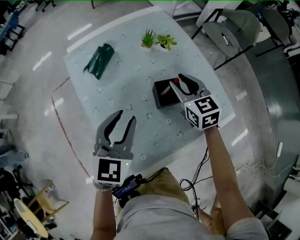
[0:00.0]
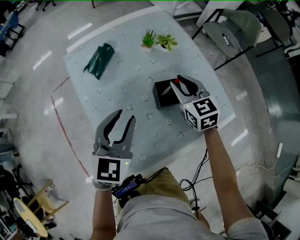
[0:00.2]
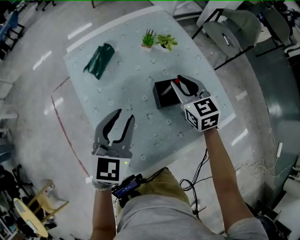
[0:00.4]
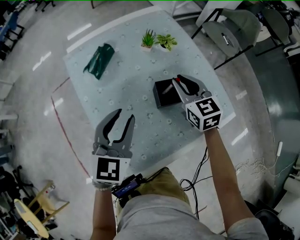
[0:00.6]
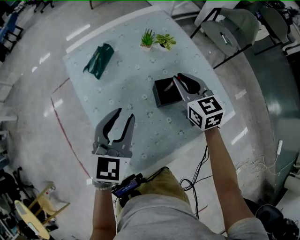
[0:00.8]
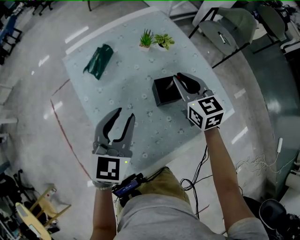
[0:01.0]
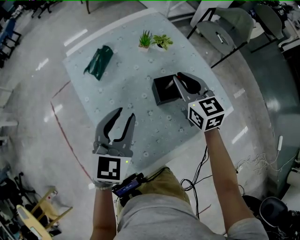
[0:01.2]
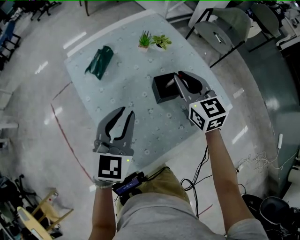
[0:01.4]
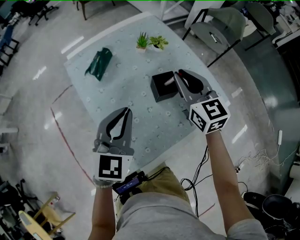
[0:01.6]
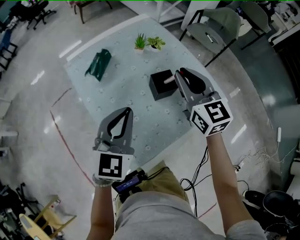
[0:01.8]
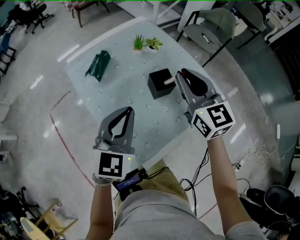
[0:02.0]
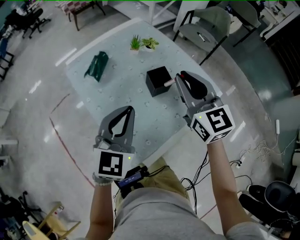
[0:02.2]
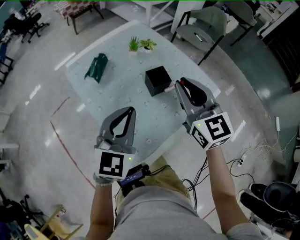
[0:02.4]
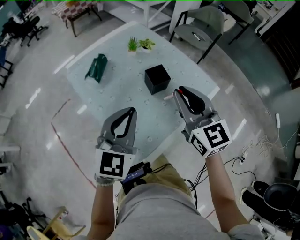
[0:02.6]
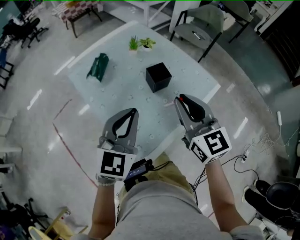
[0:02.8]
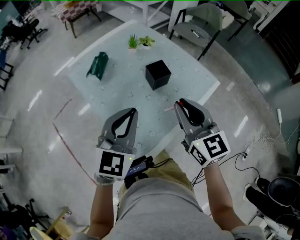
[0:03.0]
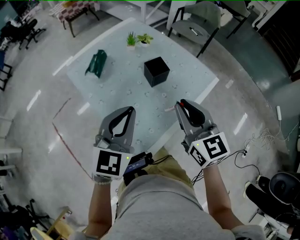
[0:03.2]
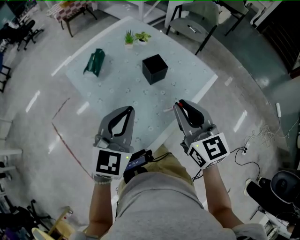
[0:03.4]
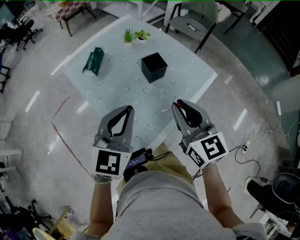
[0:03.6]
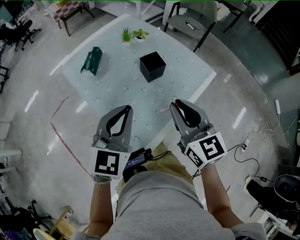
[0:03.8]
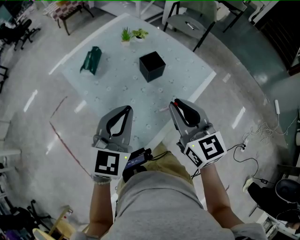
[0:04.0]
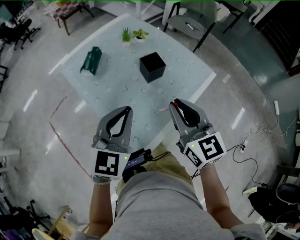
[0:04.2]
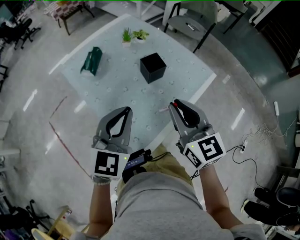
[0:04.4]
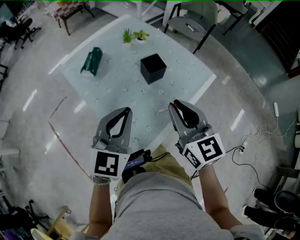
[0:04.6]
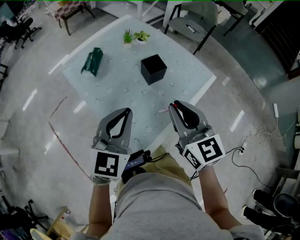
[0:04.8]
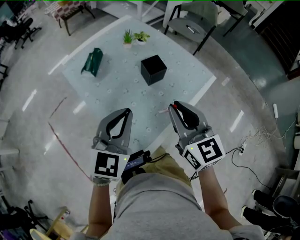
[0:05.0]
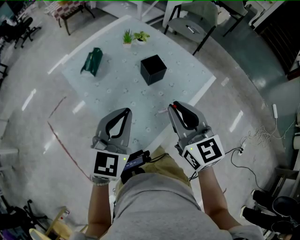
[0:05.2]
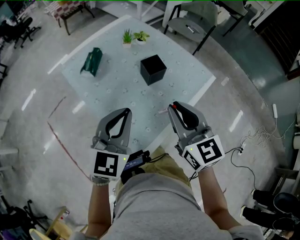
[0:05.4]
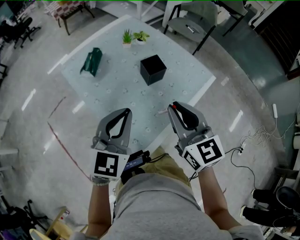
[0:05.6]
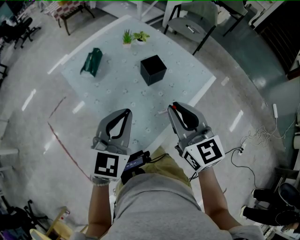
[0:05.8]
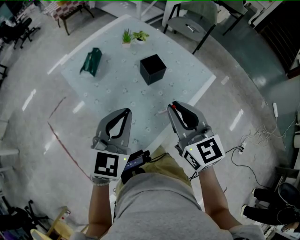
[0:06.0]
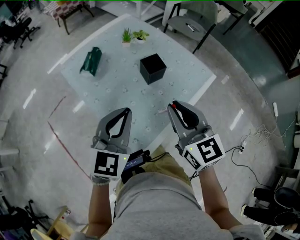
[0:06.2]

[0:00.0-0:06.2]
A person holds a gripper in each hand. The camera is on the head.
0:00.0 to 0:01.6: The right gripper travels upward by roughly 10 cm, and closes up, while the left gripper closes.
0:01.6 to 0:03.2: The left gripper heads backward, covering about 10 cm. Meanwhile the right gripper heads backward, covering about 20 cm.
0:03.2 to 0:04.6: The grippers stay close to where they were, moving slightly.
0:04.6 to 0:06.2: Neither gripper changes place.

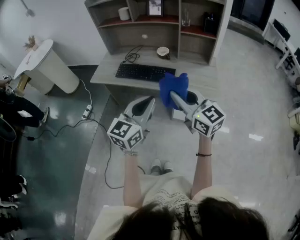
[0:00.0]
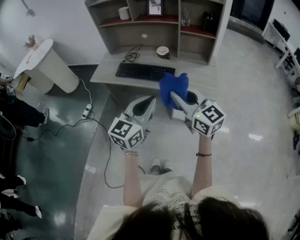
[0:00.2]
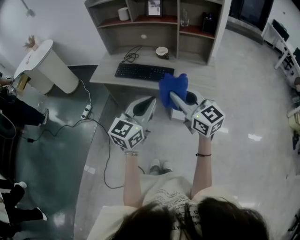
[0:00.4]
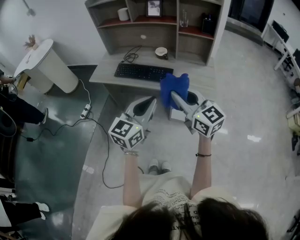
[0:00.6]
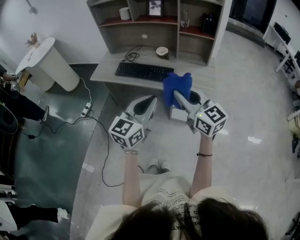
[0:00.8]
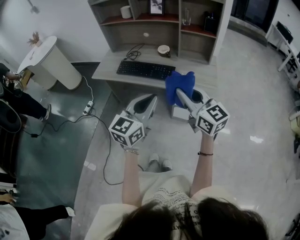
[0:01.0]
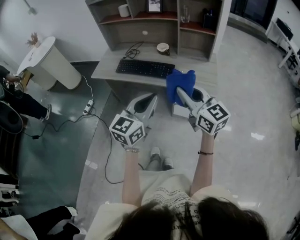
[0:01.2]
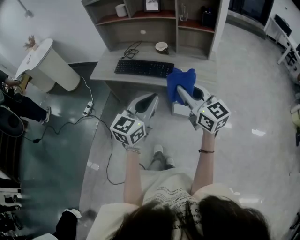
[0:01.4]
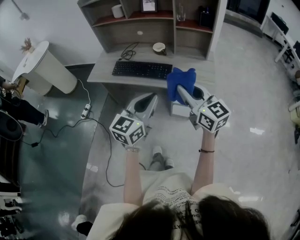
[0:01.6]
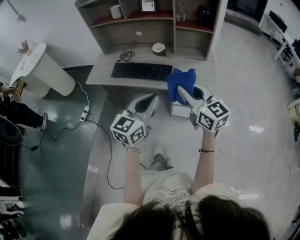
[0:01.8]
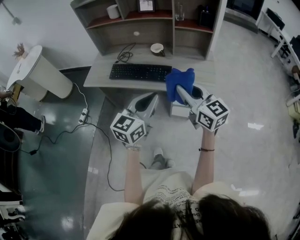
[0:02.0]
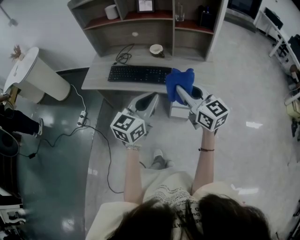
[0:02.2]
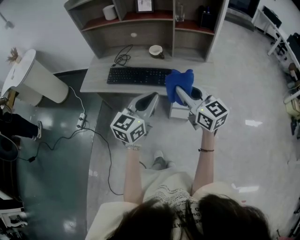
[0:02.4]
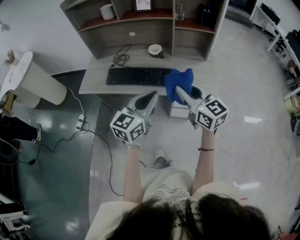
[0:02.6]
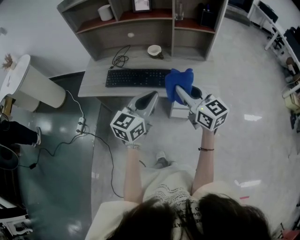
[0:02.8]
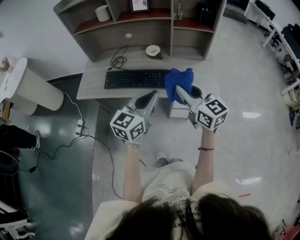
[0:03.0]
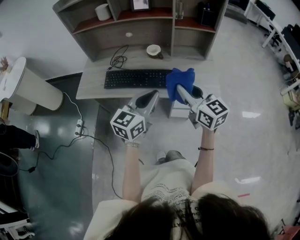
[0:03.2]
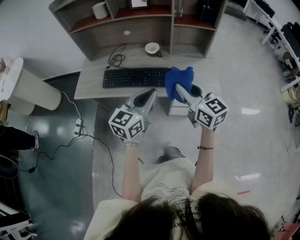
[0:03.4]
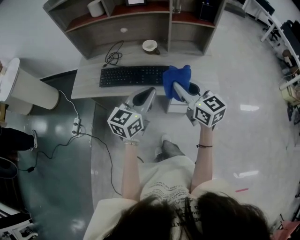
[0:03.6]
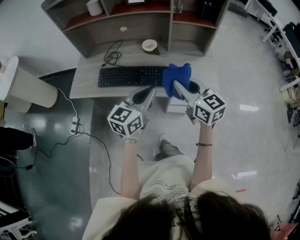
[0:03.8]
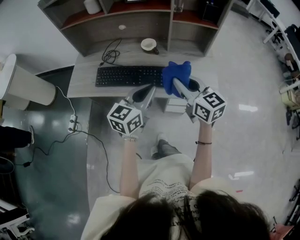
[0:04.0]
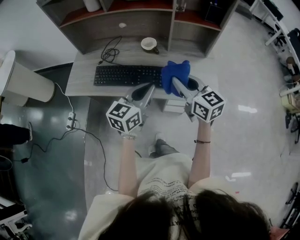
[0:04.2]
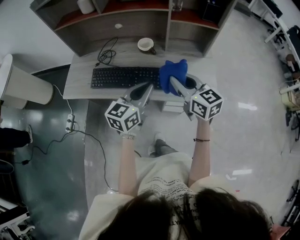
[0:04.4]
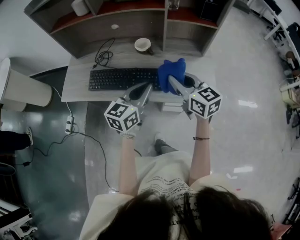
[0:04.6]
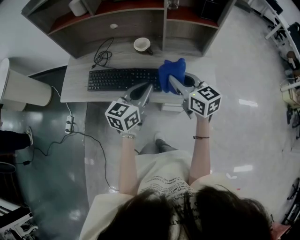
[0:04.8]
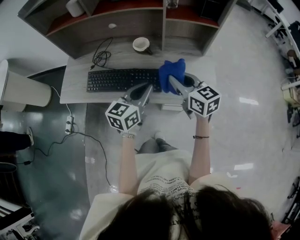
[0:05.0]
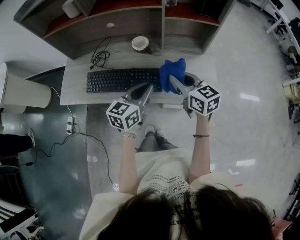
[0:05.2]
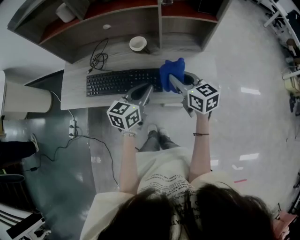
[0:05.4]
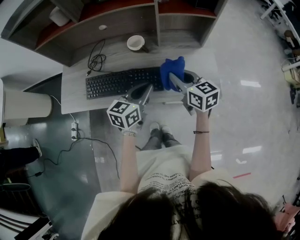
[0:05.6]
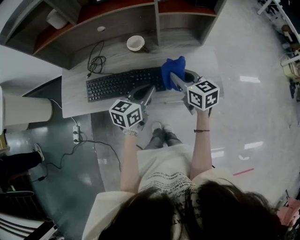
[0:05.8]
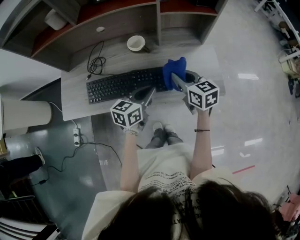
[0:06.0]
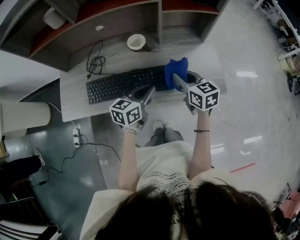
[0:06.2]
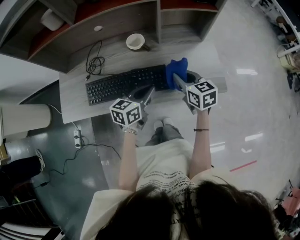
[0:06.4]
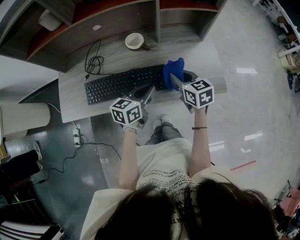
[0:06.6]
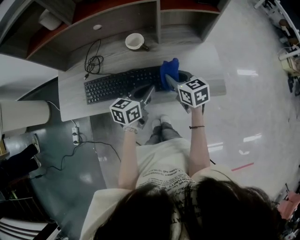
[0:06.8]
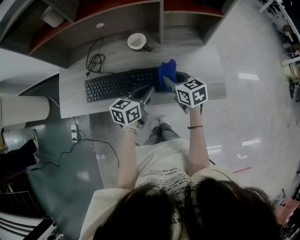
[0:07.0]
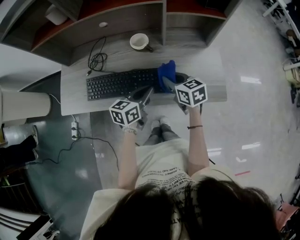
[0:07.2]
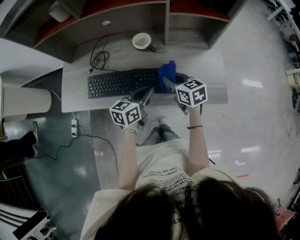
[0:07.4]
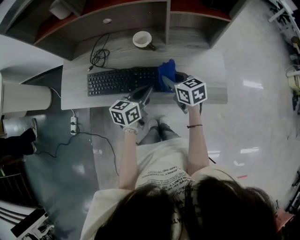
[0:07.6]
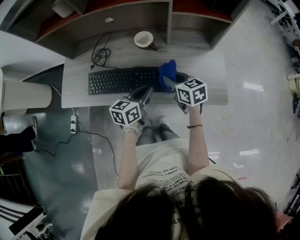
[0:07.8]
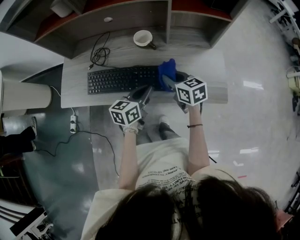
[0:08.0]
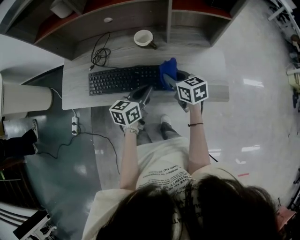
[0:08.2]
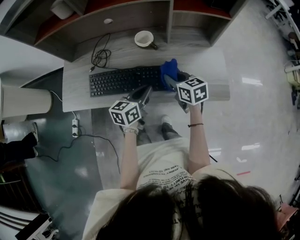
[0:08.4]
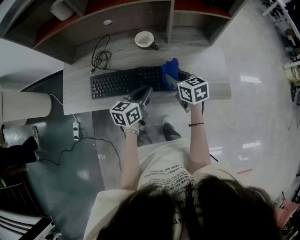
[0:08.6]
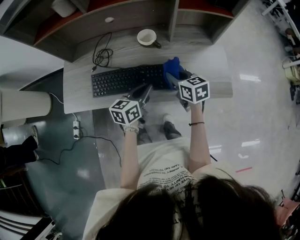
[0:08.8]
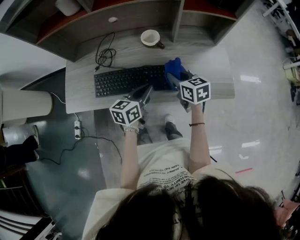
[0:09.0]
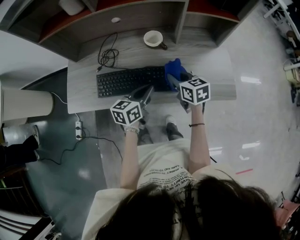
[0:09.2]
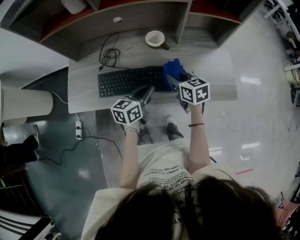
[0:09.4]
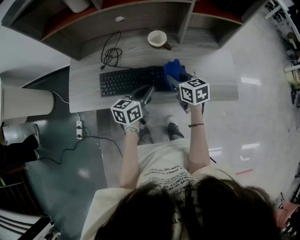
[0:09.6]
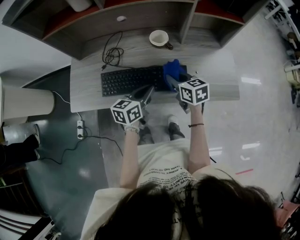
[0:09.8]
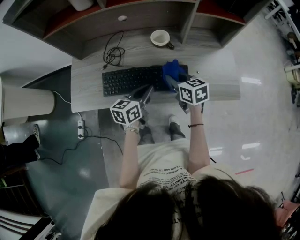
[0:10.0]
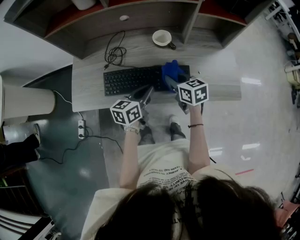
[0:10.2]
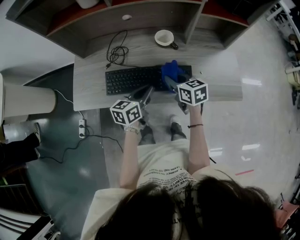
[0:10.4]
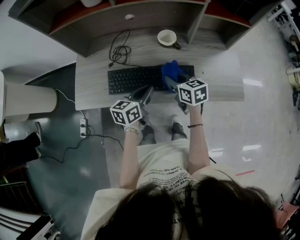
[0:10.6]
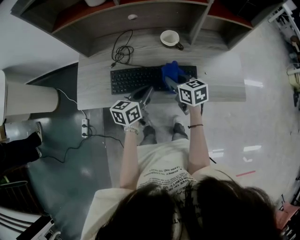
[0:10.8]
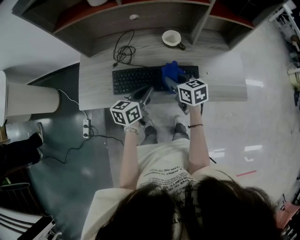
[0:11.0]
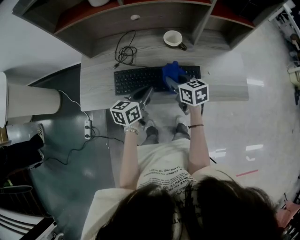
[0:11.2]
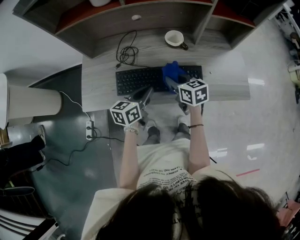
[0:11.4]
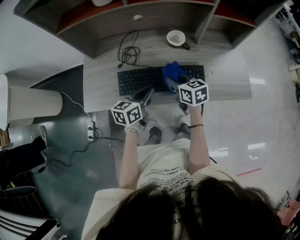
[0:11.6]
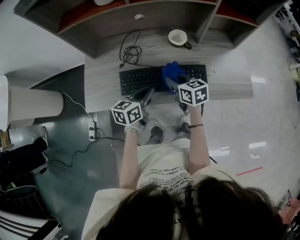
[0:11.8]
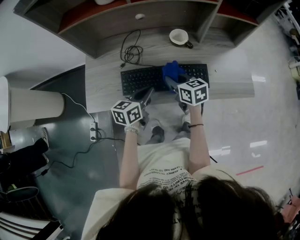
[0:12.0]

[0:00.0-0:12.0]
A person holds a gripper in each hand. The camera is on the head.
0:00.0 to 0:01.6: There are only small adjustments of the grippers.
0:01.6 to 0:03.0: The left gripper is displaced forward by about 15 cm, while the right gripper heads forward and to the left, covering approximately 15 cm.
0:03.0 to 0:04.4: The right gripper heads forward, covering approximately 10 cm, while the left gripper travels forward and downward by some 10 cm.
0:04.4 to 0:06.0: Both grippers move downward and forward, about 15 cm. The left gripper rotates roughly 20 degrees.
0:06.0 to 0:07.6: The right gripper heads downward, covering about 5 cm.
0:07.6 to 0:09.0: The left gripper is displaced to the left by some 5 cm.
0:09.0 to 0:10.4: The grippers both shift to the left by approximately 5 cm.
0:10.4 to 0:12.0: The grippers both shift to the left by approximately 10 cm.

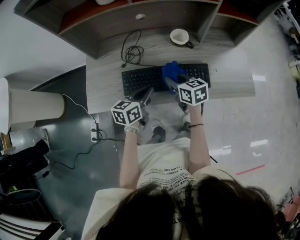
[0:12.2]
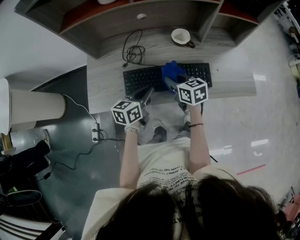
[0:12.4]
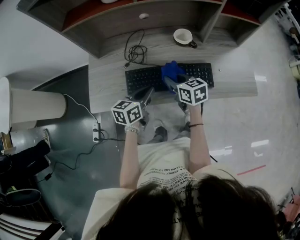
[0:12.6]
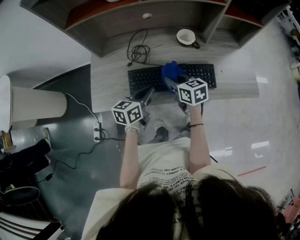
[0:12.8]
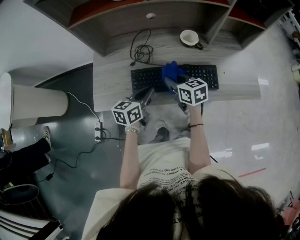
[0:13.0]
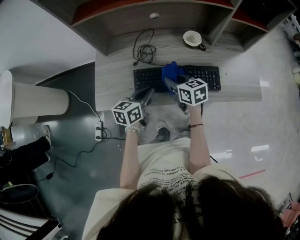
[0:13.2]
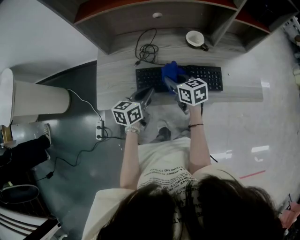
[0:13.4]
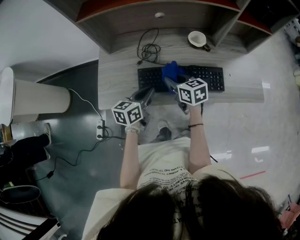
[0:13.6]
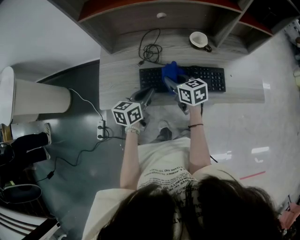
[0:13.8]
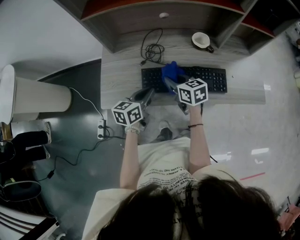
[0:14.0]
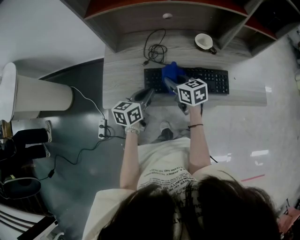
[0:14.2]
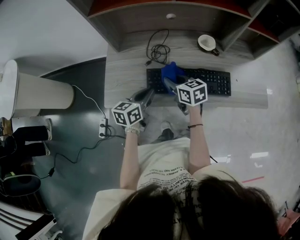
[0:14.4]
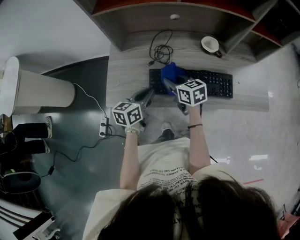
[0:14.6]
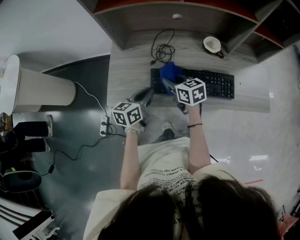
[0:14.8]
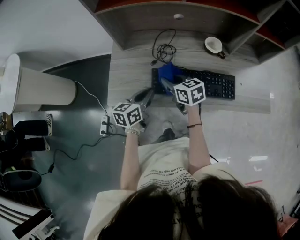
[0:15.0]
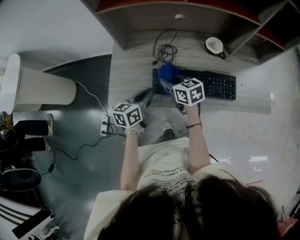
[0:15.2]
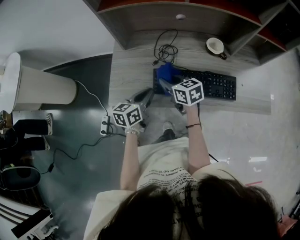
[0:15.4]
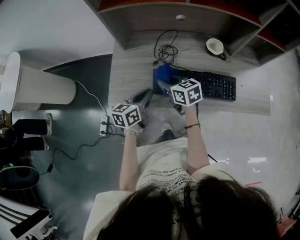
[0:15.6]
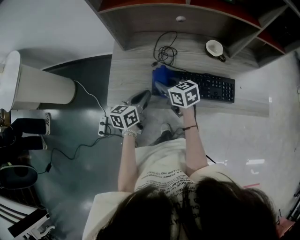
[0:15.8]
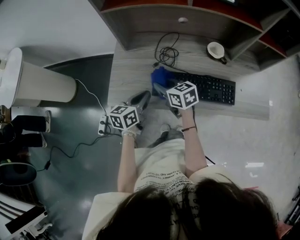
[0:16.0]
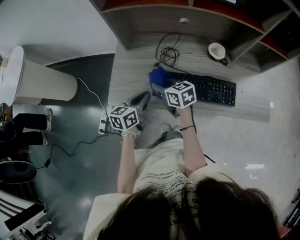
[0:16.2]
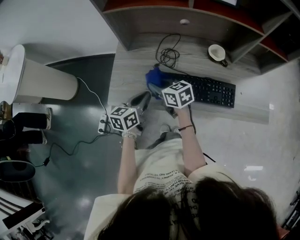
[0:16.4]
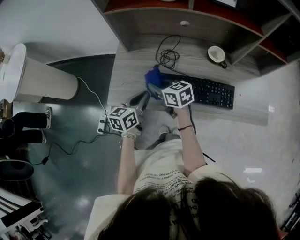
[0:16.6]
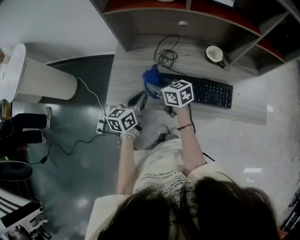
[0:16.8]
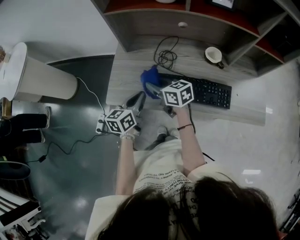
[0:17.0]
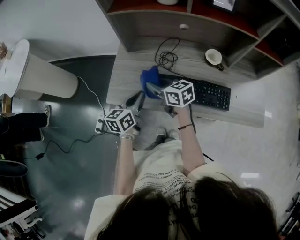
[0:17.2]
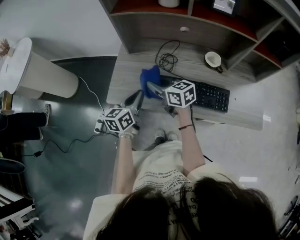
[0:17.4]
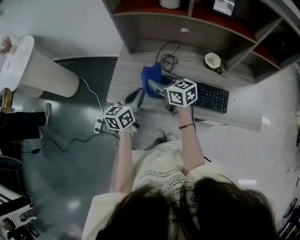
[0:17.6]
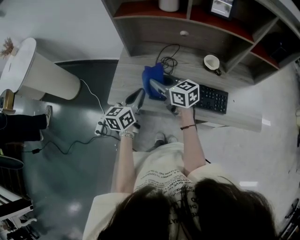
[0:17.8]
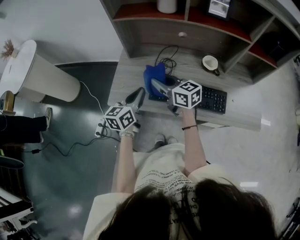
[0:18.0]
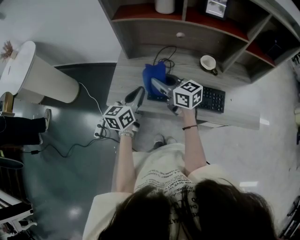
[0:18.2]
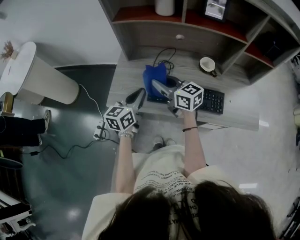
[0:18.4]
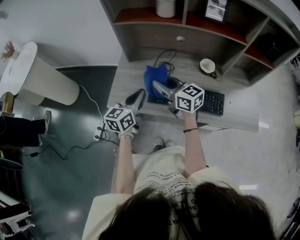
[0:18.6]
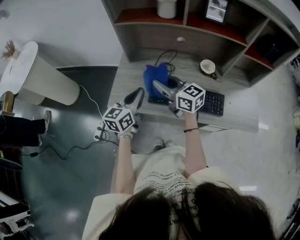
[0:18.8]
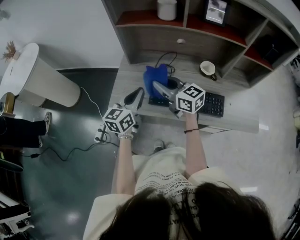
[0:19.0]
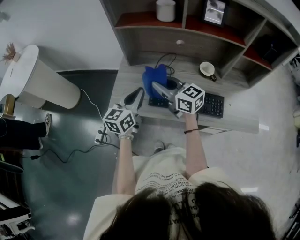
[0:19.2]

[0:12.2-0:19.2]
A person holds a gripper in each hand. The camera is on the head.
0:12.2 to 0:13.6: Both grippers travel together to the left, about 10 cm.
0:13.6 to 0:15.0: Both grippers move to the left, about 5 cm.
0:15.0 to 0:16.4: The right gripper heads to the left, covering some 5 cm.
0:16.4 to 0:17.8: The two grippers go roughly 10 cm upward.
0:17.8 to 0:19.2: The two grippers go some 5 cm upward.
